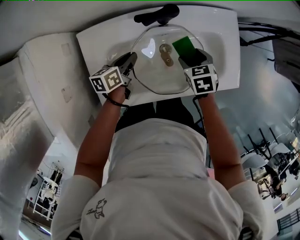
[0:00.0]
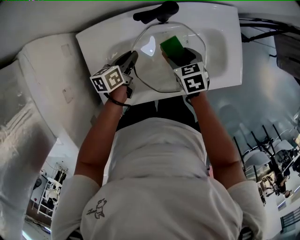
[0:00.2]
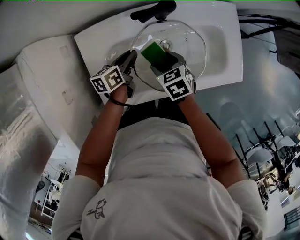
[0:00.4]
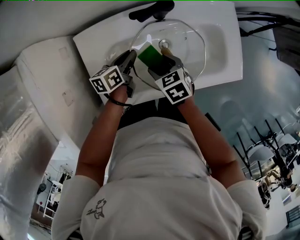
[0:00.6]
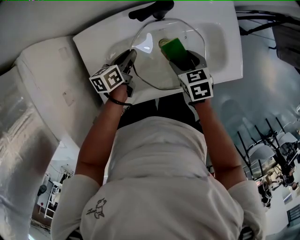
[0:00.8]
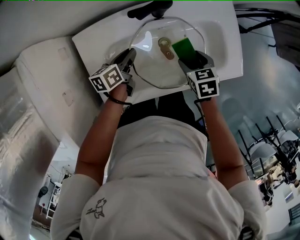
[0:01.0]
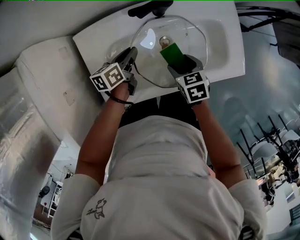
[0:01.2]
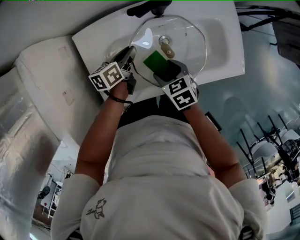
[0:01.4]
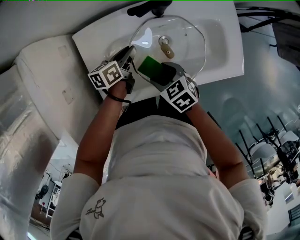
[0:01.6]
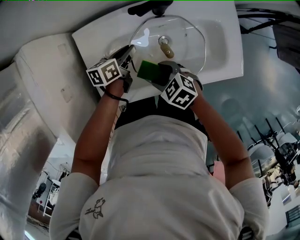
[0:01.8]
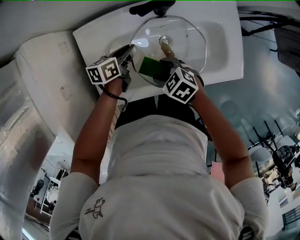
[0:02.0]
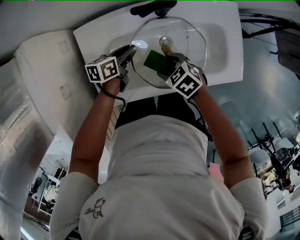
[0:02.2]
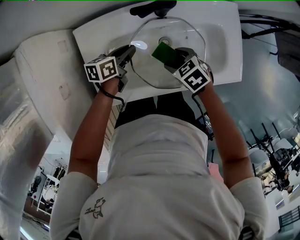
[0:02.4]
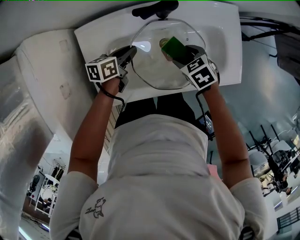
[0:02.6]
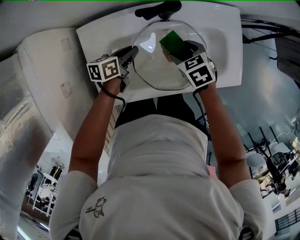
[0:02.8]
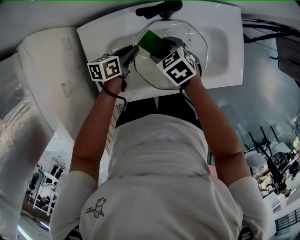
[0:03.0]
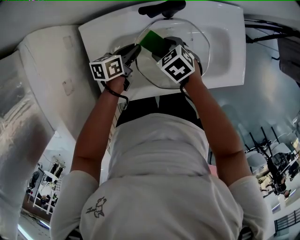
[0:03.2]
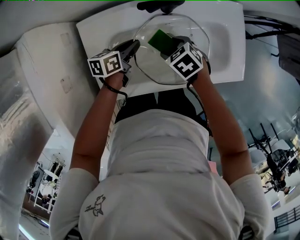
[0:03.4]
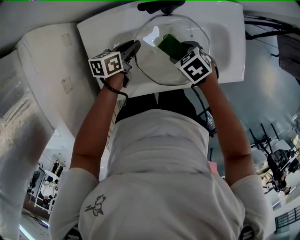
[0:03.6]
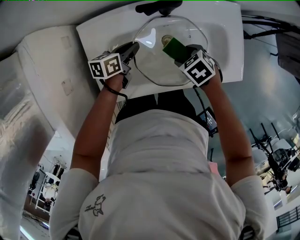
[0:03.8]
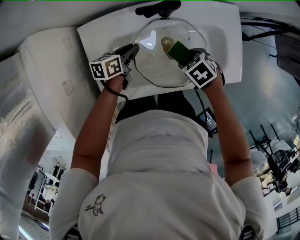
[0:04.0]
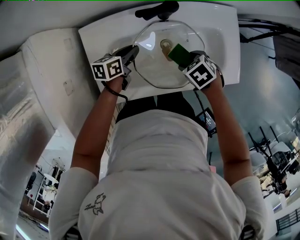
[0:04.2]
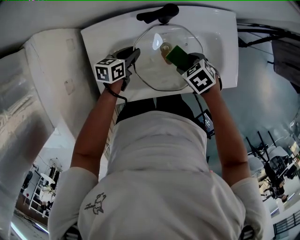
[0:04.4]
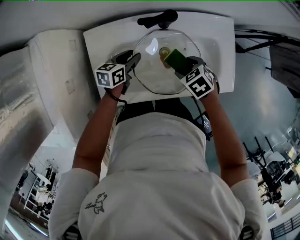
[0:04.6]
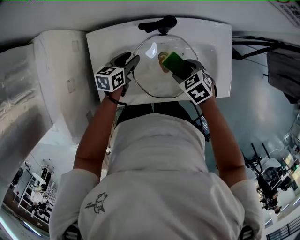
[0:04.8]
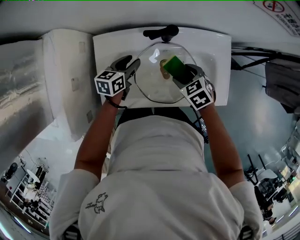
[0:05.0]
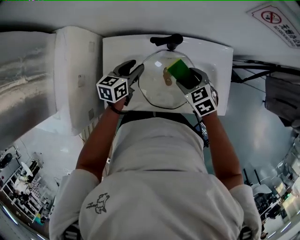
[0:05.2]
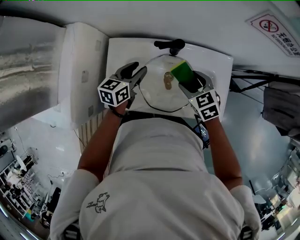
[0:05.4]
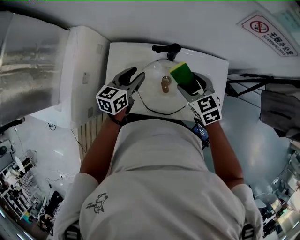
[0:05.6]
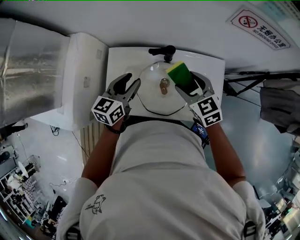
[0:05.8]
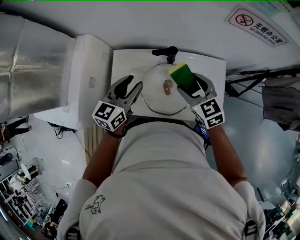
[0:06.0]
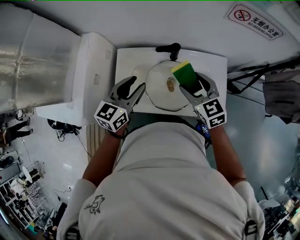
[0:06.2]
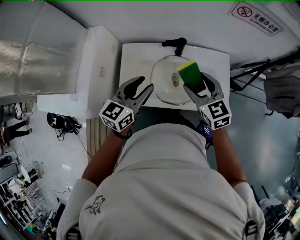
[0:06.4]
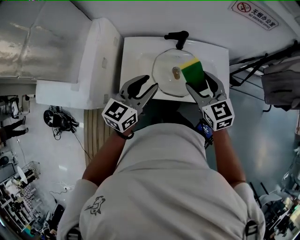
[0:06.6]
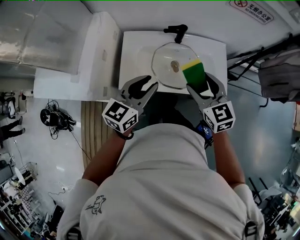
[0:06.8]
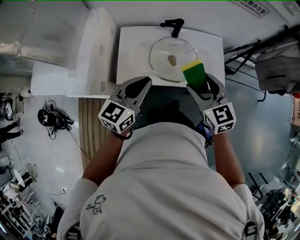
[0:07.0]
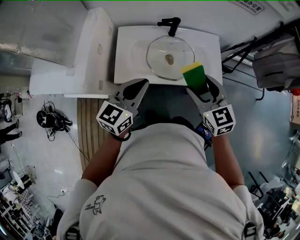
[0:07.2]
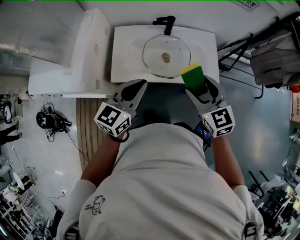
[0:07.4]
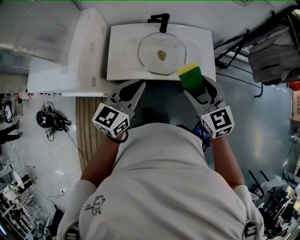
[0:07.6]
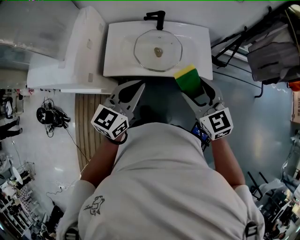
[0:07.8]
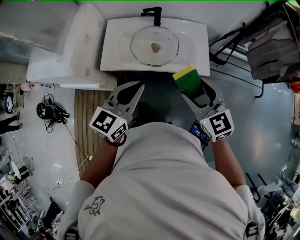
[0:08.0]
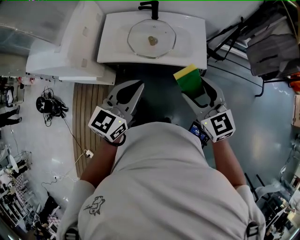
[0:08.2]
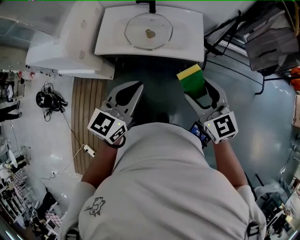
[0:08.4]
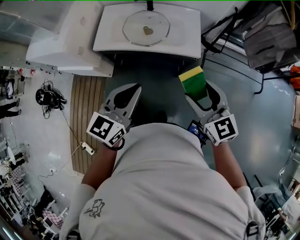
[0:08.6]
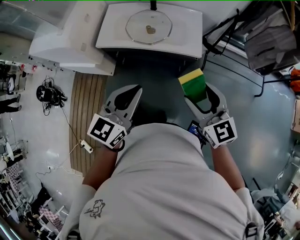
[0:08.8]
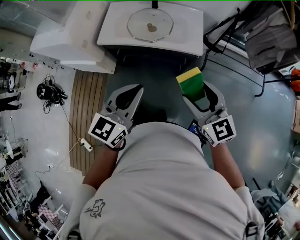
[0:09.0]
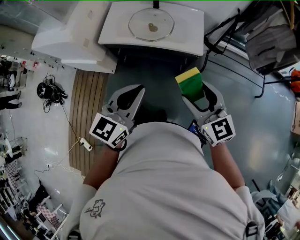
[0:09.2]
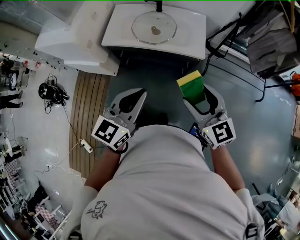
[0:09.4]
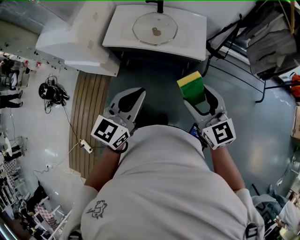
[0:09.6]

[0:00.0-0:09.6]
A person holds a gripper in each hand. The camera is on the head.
0:00.0 to 0:01.6: The right gripper swings left and right, roughly 15 cm each way, with 2 reversals, and turns by about 20 degrees.
0:01.6 to 0:03.2: The right gripper ends up some 10 cm from where it was.
0:03.2 to 0:04.8: The right gripper ends up about 10 cm from where it was. The left gripper opens.
0:04.8 to 0:06.4: The right gripper heads upward, covering roughly 25 cm, and tilts its fingers roughly 40 degrees upward, while the left gripper shifts approximately 35 cm upward and backward, and changes its angle by about 30 degrees.
0:06.4 to 0:08.0: Both grippers move backward and to the right, about 30 cm. The left gripper closes up.
0:08.0 to 0:09.6: The grippers both shift backward by approximately 20 cm.

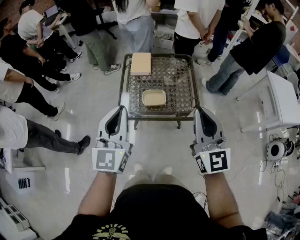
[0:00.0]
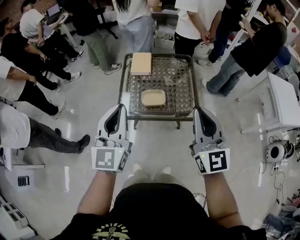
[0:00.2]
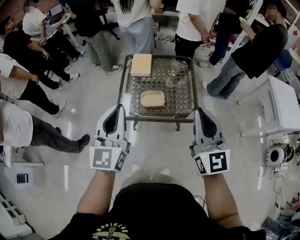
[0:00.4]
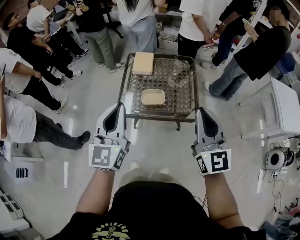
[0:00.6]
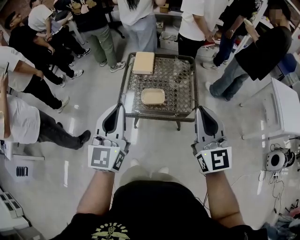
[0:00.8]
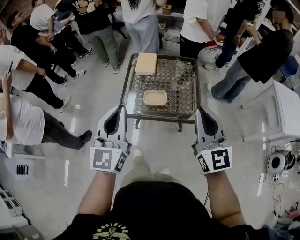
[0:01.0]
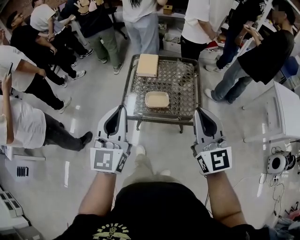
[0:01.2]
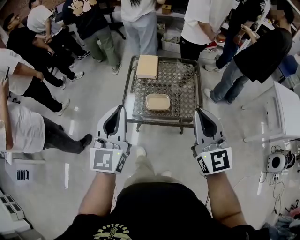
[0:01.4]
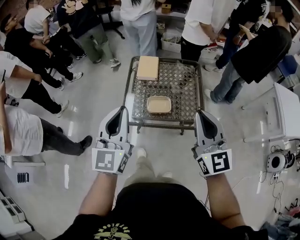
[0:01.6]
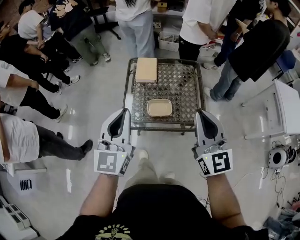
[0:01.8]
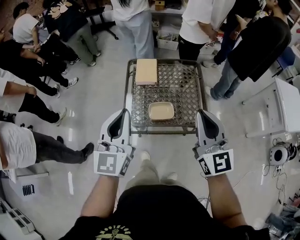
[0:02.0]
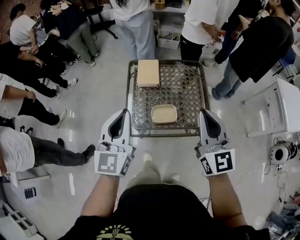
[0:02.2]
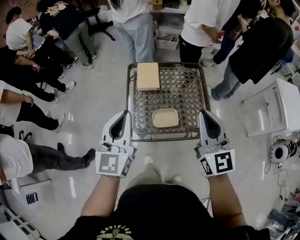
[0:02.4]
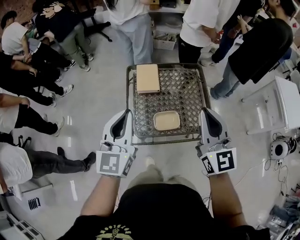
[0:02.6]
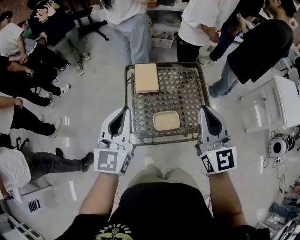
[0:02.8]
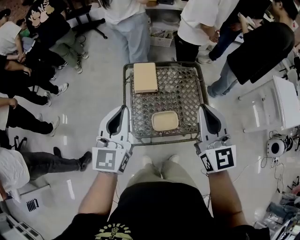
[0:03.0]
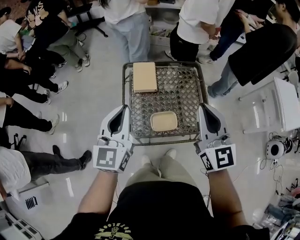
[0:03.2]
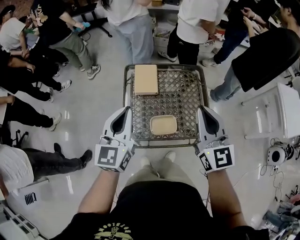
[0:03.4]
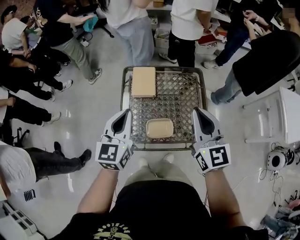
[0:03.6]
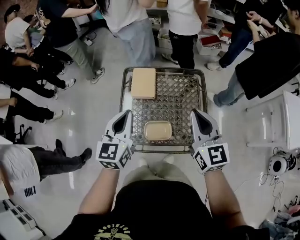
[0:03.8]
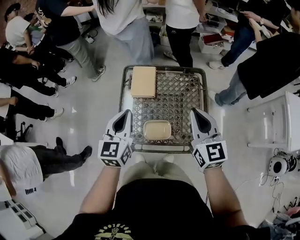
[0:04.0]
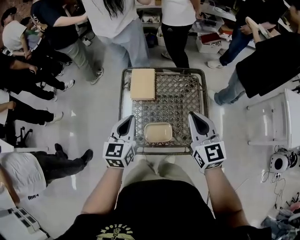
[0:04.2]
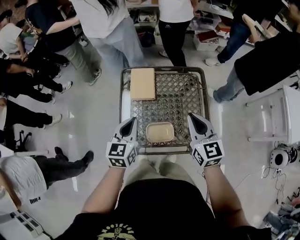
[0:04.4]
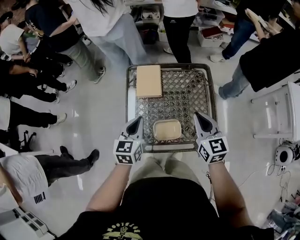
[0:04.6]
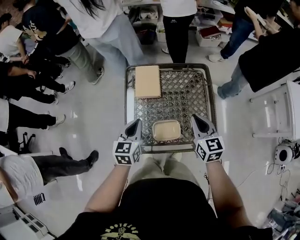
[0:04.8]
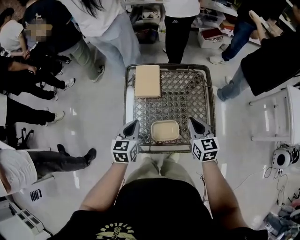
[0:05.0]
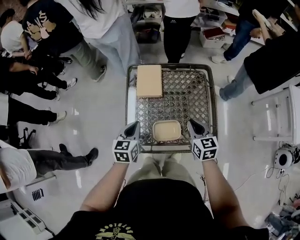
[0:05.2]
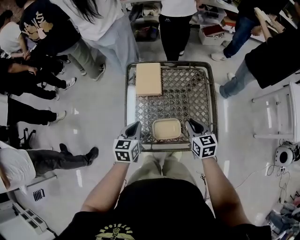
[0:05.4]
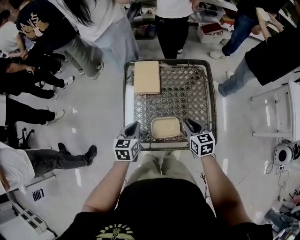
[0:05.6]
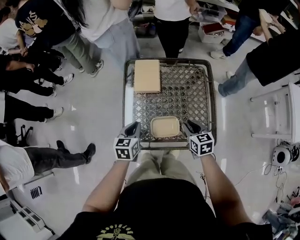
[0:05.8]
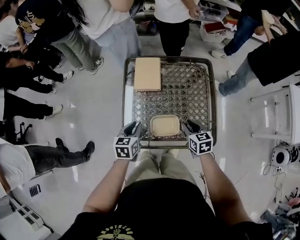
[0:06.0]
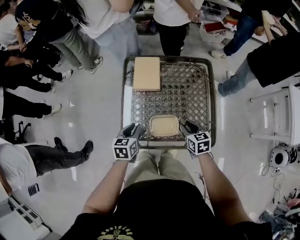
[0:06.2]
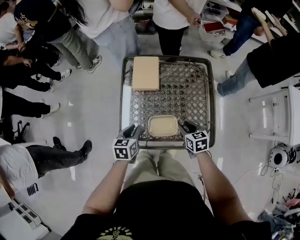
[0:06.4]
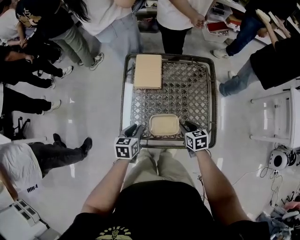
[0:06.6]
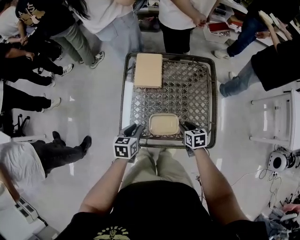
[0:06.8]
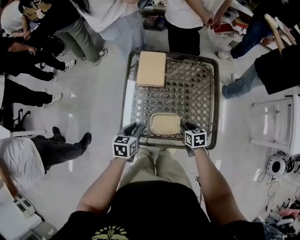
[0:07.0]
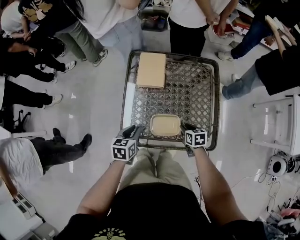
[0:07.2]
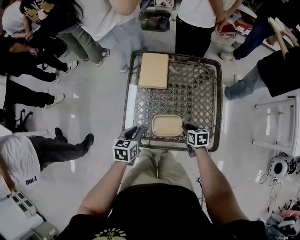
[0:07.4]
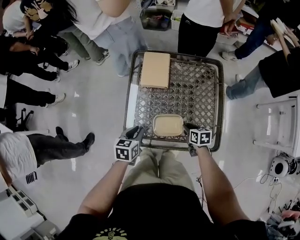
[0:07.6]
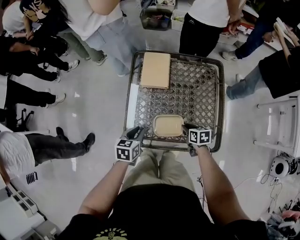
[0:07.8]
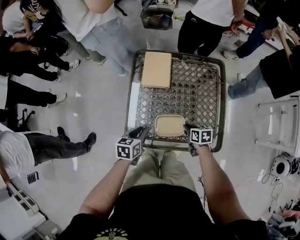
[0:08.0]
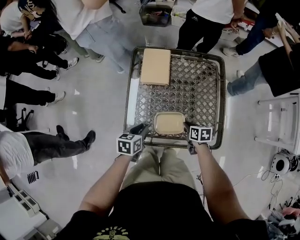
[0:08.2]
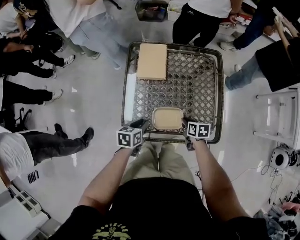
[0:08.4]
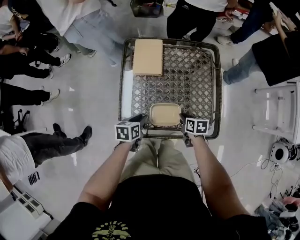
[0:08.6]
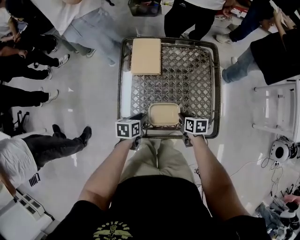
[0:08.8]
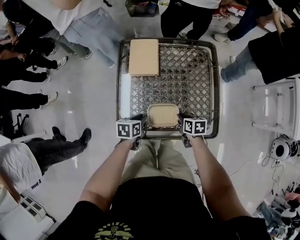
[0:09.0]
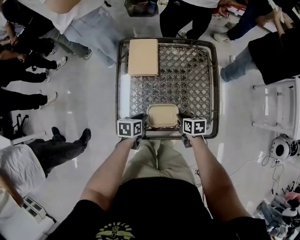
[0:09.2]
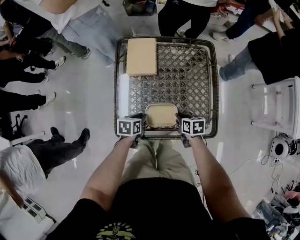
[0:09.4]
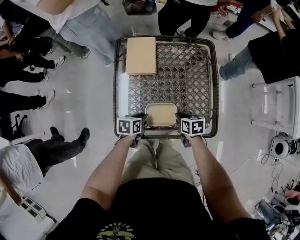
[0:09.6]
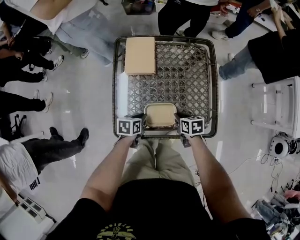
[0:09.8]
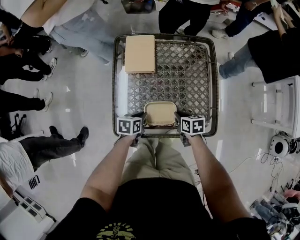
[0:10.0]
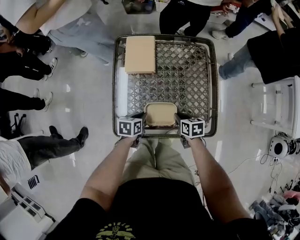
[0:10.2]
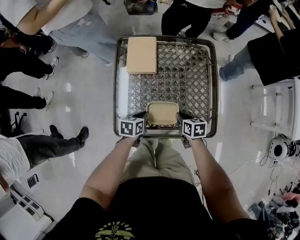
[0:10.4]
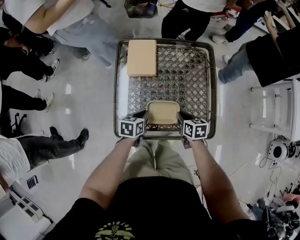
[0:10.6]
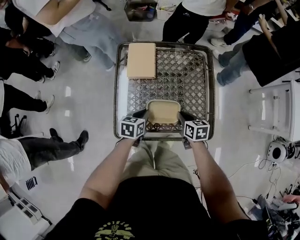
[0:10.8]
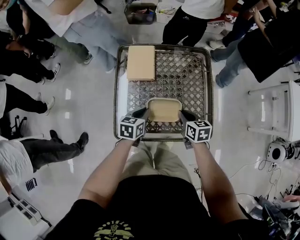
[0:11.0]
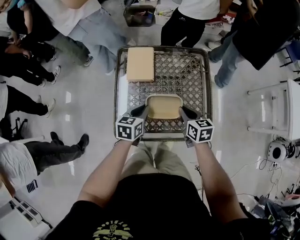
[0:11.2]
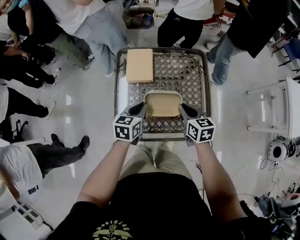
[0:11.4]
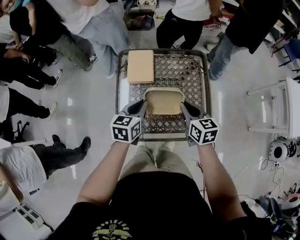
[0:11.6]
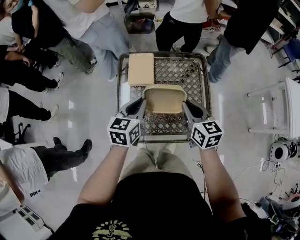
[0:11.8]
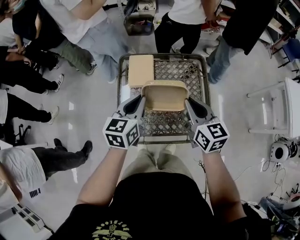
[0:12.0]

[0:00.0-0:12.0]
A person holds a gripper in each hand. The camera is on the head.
0:00.0 to 0:01.6: The right gripper shifts some 5 cm forward.
0:01.6 to 0:03.0: The left gripper goes approximately 20 cm forward, while the right gripper moves forward and to the left, roughly 20 cm.
0:03.0 to 0:04.4: The left gripper is displaced downward and to the right by roughly 15 cm, and changes its angle by approximately 20 degrees. The right gripper moves downward, forward and to the right, approximately 15 cm, and rotates about 20 degrees.
0:04.4 to 0:06.0: The grippers both shift downward by approximately 20 cm. The left gripper changes its angle by about 20 degrees; the right gripper swivels about 30 degrees.
0:06.0 to 0:07.6: The right gripper shifts some 10 cm downward.
0:07.6 to 0:09.0: The left gripper goes some 10 cm downward.
0:09.0 to 0:10.4: There are only small adjustments of the grippers.
0:10.4 to 0:12.0: Both grippers travel together upward, about 30 cm. The left gripper swivels approximately 40 degrees. Meanwhile the right gripper tilts its fingers some 30 degrees upward.

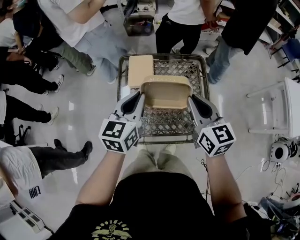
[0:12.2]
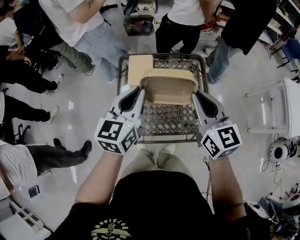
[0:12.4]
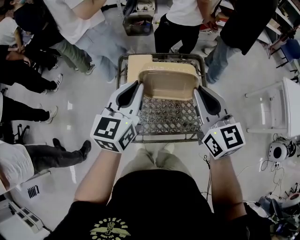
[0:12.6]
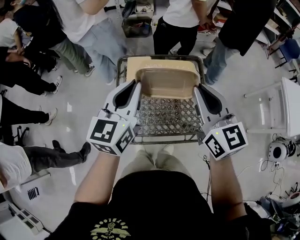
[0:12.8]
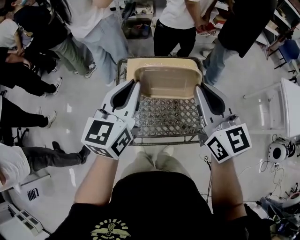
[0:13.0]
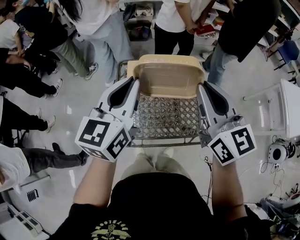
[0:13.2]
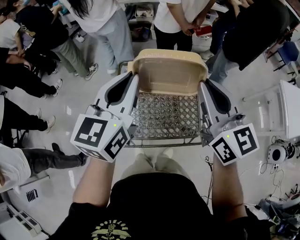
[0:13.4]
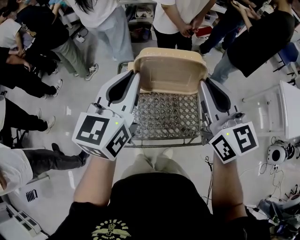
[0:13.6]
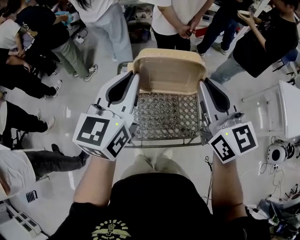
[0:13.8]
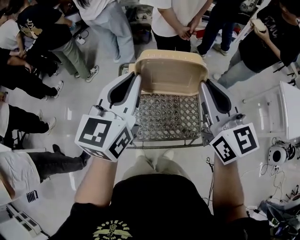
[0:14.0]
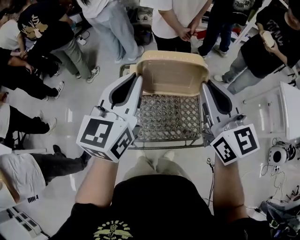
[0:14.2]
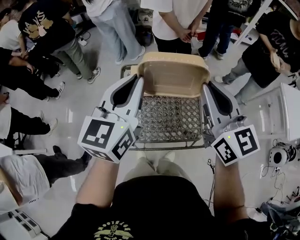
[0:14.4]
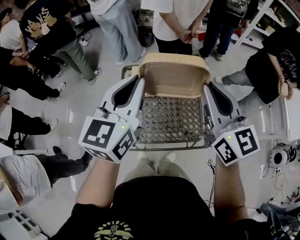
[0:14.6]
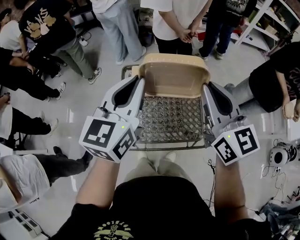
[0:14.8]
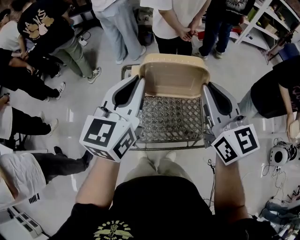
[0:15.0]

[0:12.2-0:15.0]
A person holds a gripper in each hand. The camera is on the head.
0:12.2 to 0:13.6: The two grippers go approximately 15 cm upward.
0:13.6 to 0:15.0: Neither gripper changes place.
